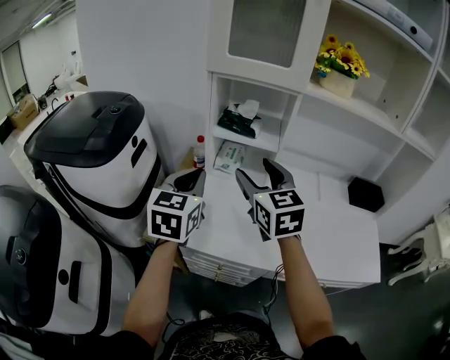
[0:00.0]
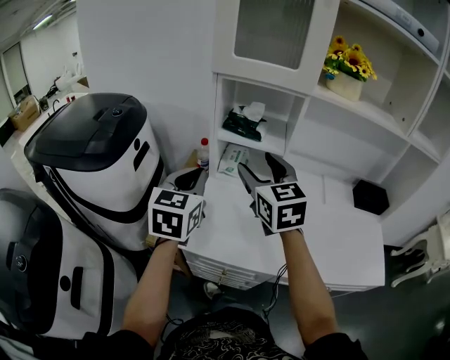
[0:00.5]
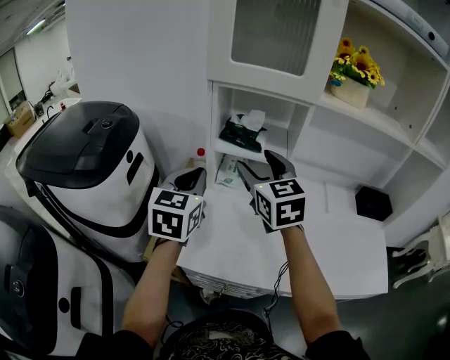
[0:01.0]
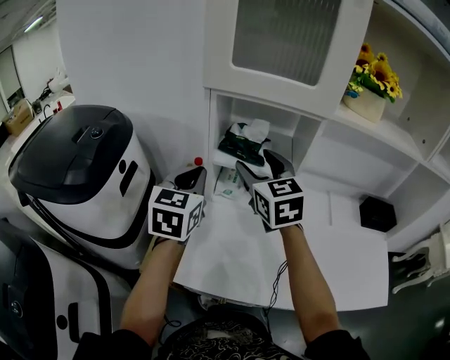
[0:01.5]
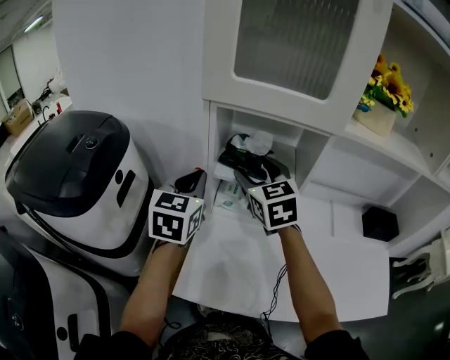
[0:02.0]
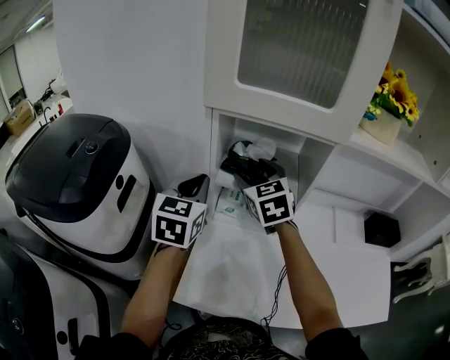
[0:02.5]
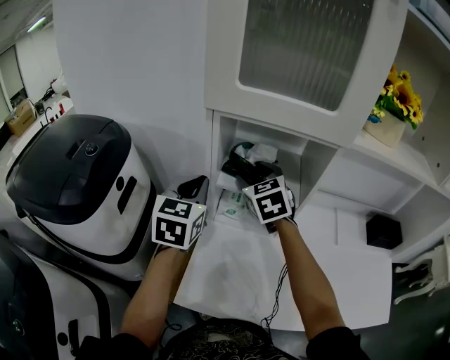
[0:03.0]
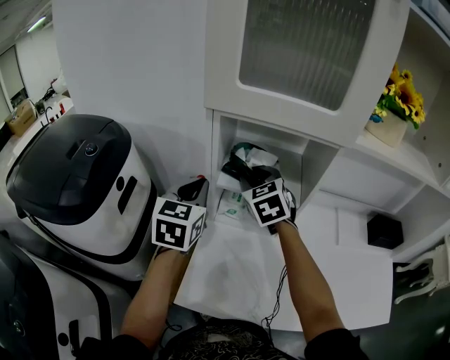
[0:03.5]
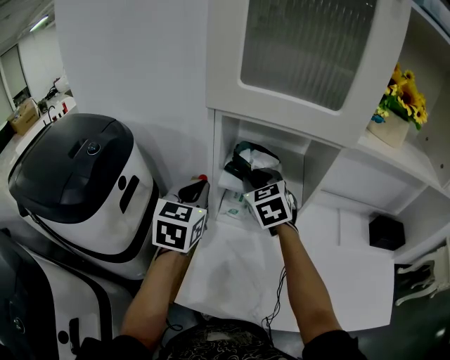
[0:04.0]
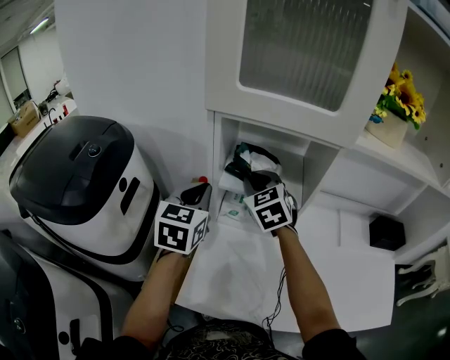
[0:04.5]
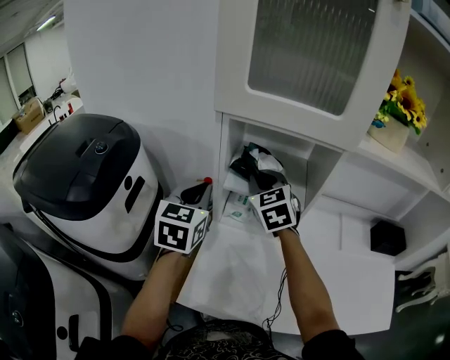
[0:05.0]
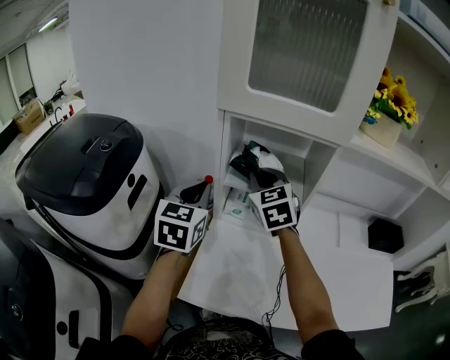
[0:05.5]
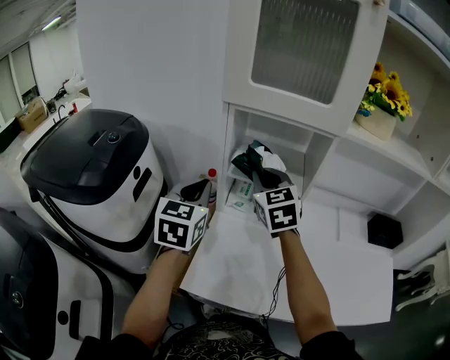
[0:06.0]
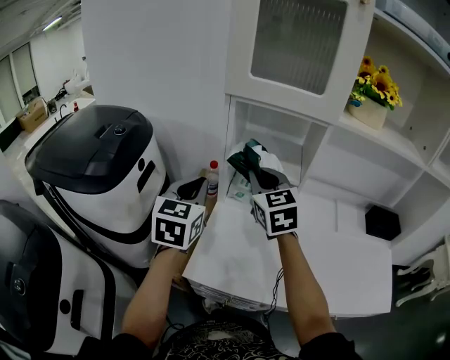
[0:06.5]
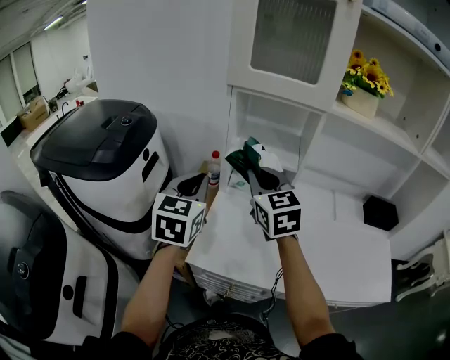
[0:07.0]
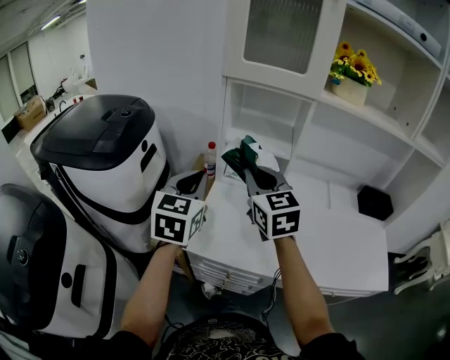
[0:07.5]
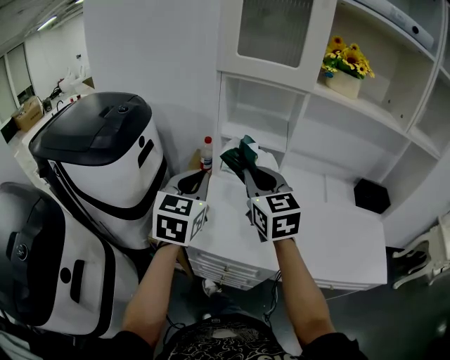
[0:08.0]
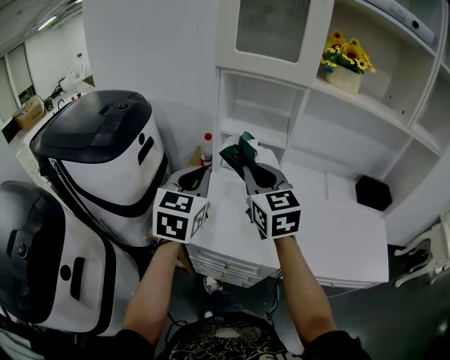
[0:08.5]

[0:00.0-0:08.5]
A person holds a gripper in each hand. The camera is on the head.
0:00.0 to 0:02.0: Both grippers move forward, about 20 cm.
0:02.0 to 0:04.0: The right gripper goes some 5 cm downward, and closes.
0:04.0 to 0:06.5: The right gripper shifts some 15 cm backward and upward, while the left gripper heads backward, covering some 10 cm.
0:06.5 to 0:08.5: Both grippers move backward, some 15 cm.

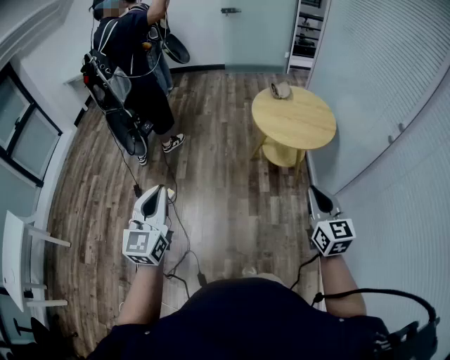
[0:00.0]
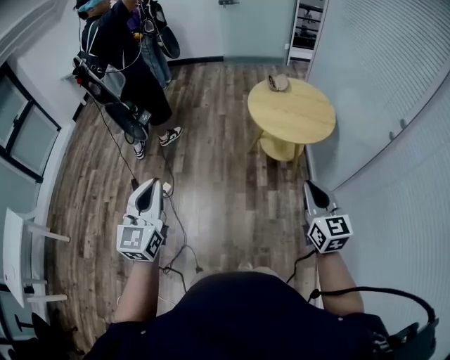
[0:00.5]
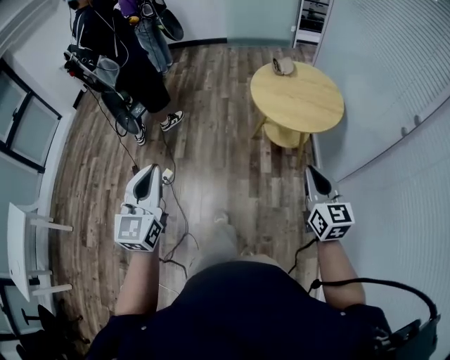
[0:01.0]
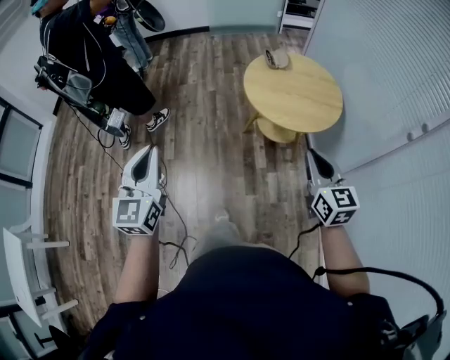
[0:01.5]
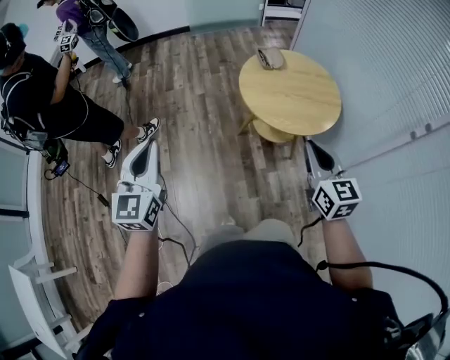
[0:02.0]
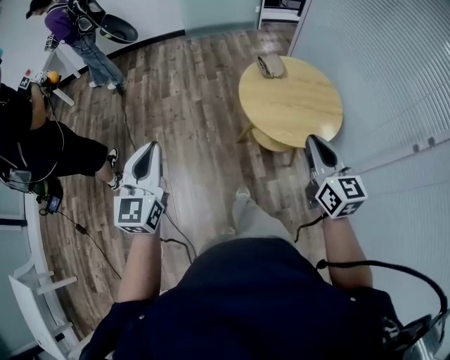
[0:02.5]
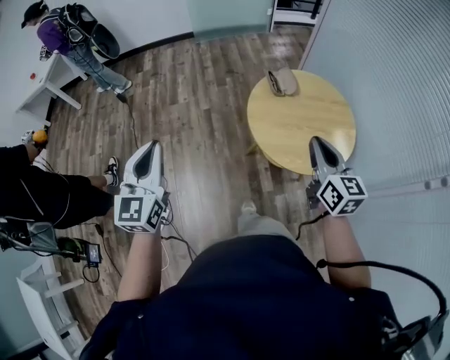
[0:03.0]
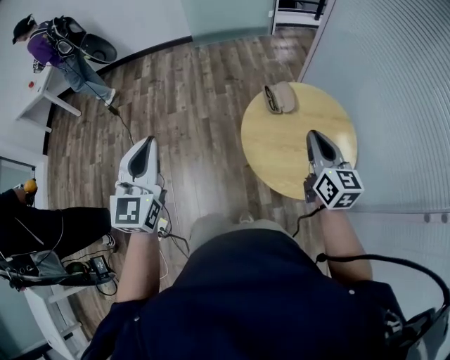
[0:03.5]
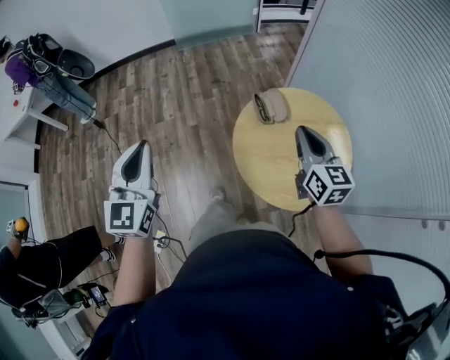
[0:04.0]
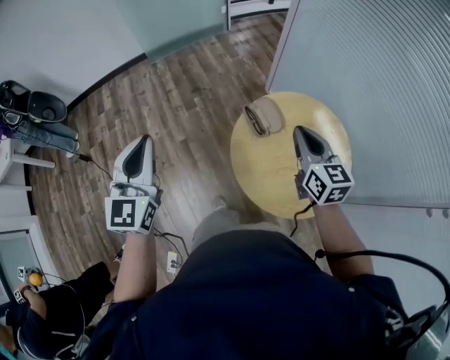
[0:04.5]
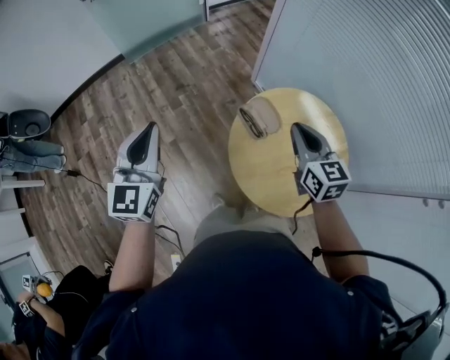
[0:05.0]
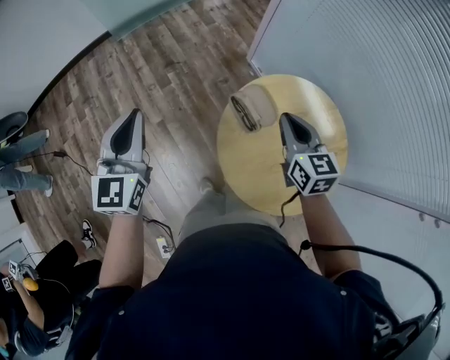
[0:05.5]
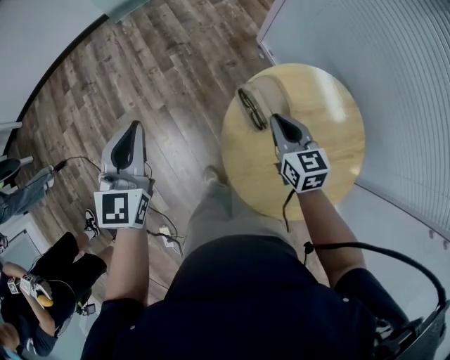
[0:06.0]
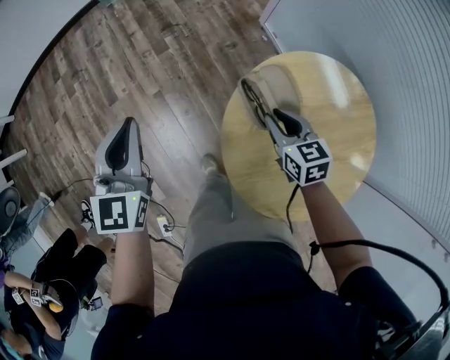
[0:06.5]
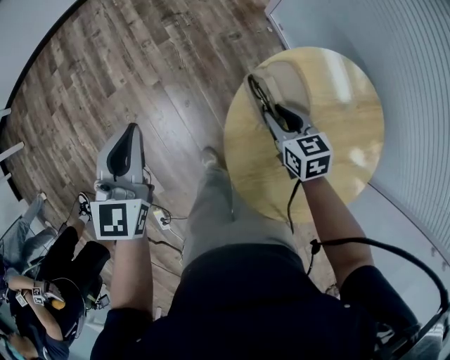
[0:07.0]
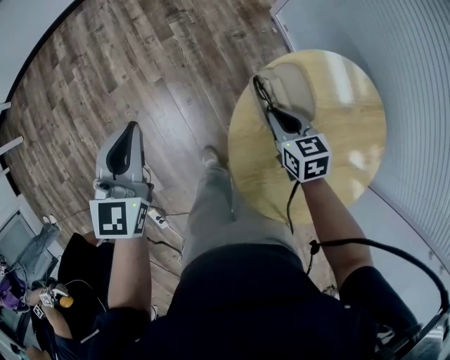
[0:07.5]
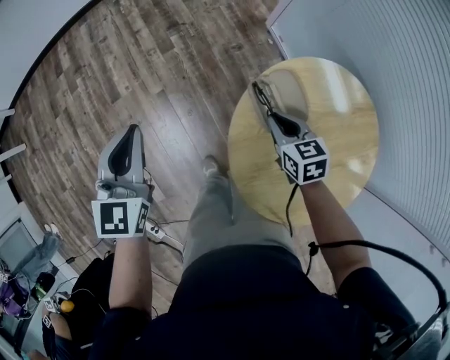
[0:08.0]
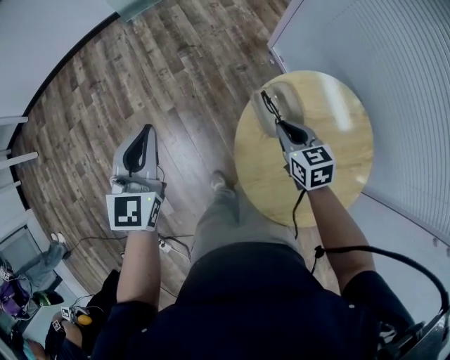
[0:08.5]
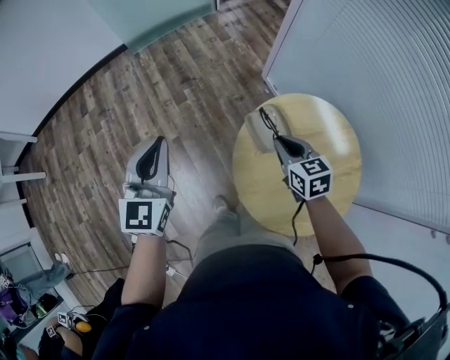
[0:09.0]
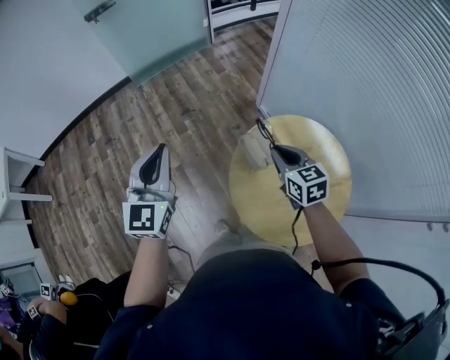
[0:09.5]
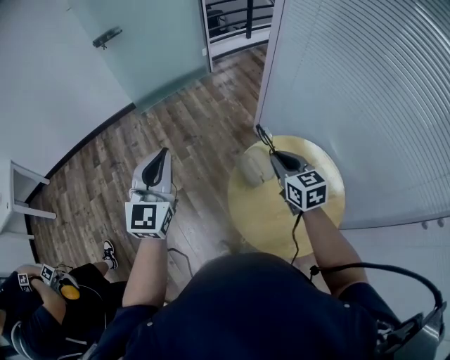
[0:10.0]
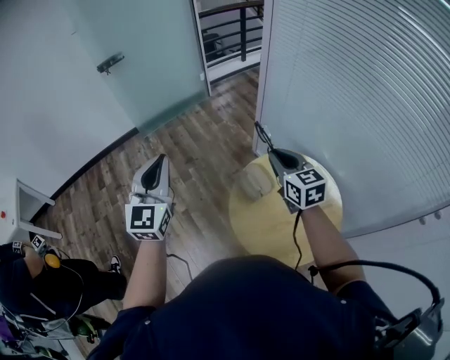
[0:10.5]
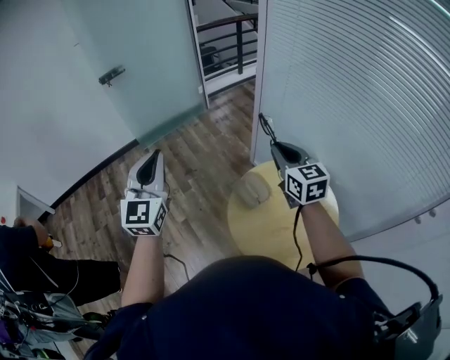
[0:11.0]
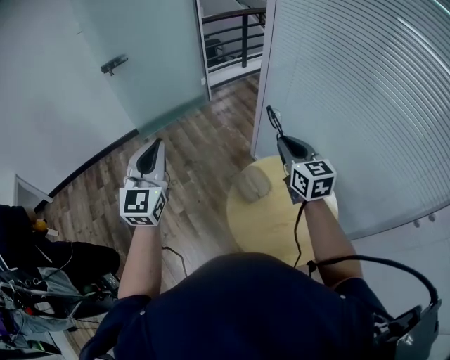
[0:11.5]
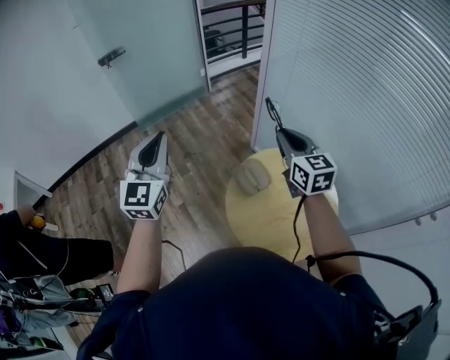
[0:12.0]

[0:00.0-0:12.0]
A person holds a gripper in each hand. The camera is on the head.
0:00.0 to 0:02.0: Both grippers travel together forward, some 35 cm.
0:02.0 to 0:04.0: The two grippers travel together, forward, about 40 cm.
0:04.0 to 0:06.0: Both grippers move forward and downward, about 35 cm. The right gripper turns by approximately 20 degrees. The left gripper rotates roughly 20 degrees.
0:06.0 to 0:08.0: The left gripper heads downward, covering some 5 cm. The right gripper moves downward, roughly 10 cm, and opens and closes again.
0:08.0 to 0:10.0: Both grippers move upward, about 25 cm. The left gripper rotates approximately 20 degrees. The right gripper turns by roughly 20 degrees.
0:10.0 to 0:12.0: The left gripper is displaced upward by some 10 cm. The right gripper travels upward by approximately 15 cm.

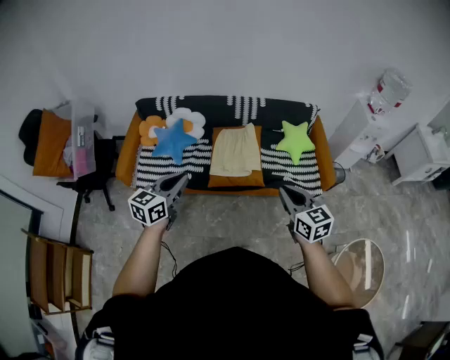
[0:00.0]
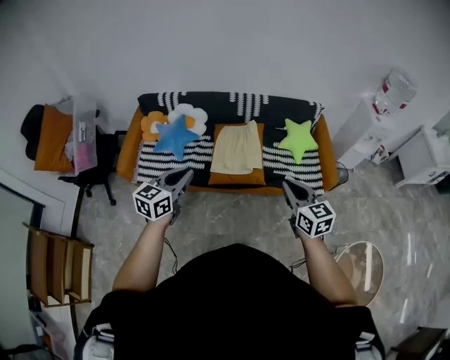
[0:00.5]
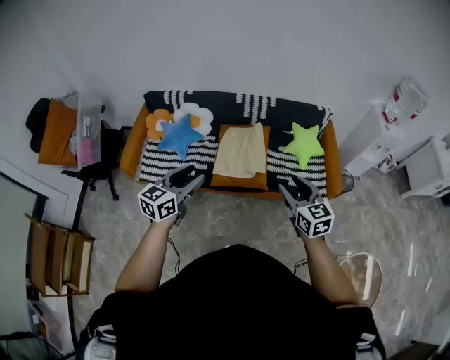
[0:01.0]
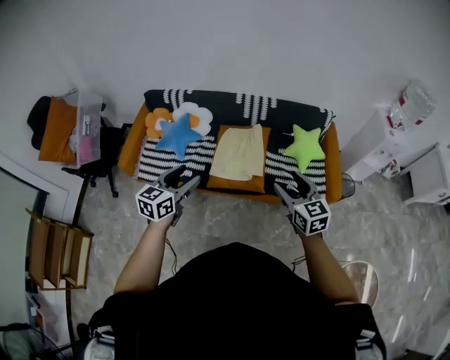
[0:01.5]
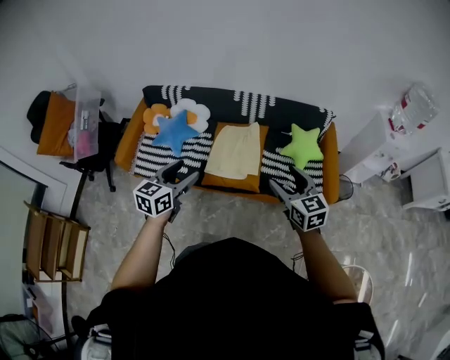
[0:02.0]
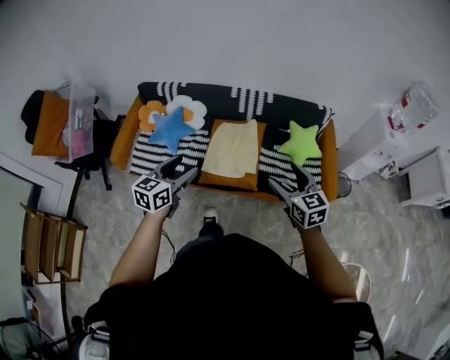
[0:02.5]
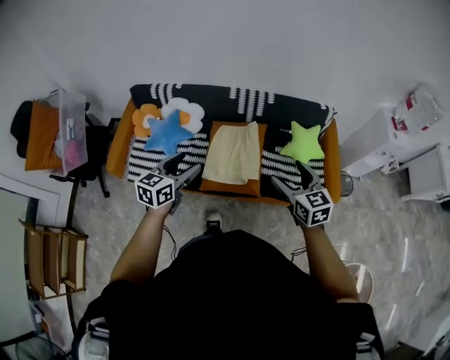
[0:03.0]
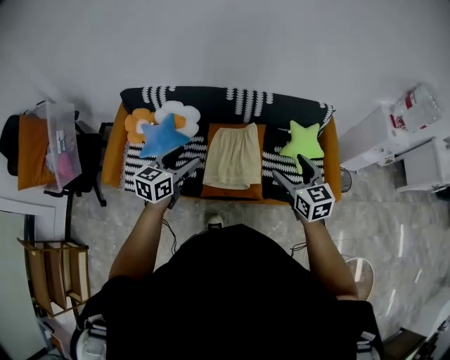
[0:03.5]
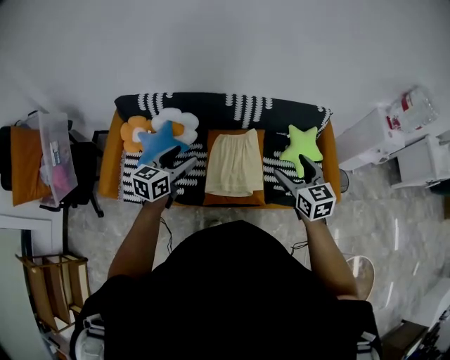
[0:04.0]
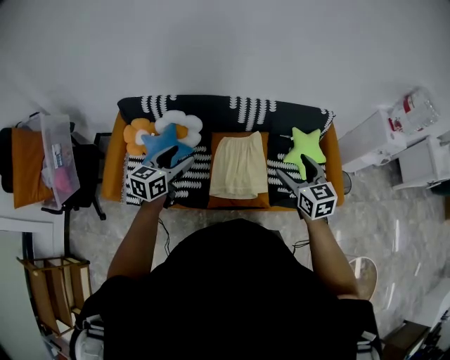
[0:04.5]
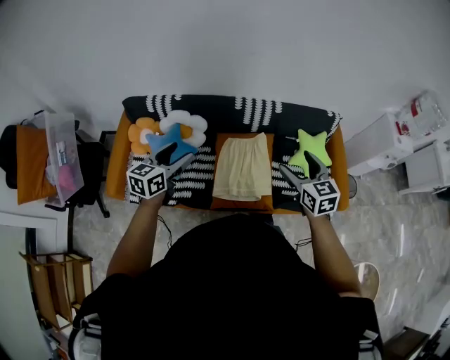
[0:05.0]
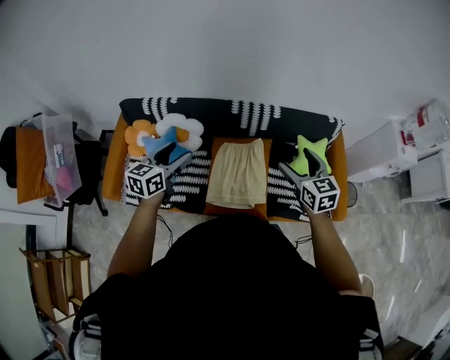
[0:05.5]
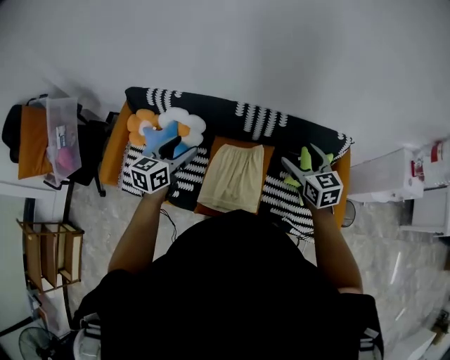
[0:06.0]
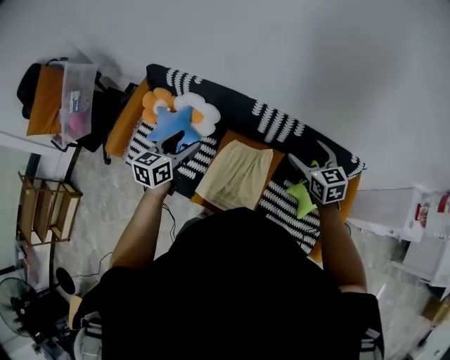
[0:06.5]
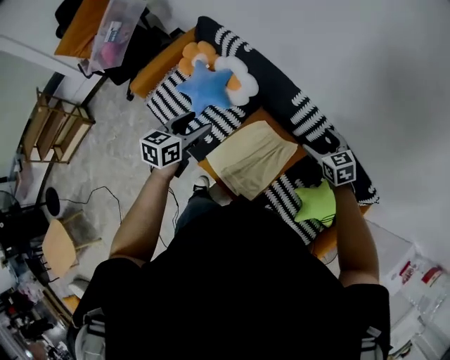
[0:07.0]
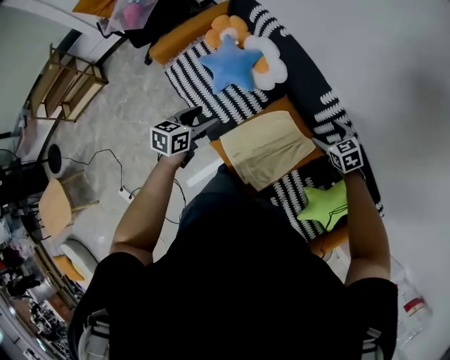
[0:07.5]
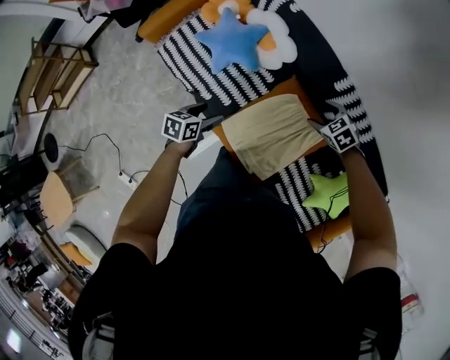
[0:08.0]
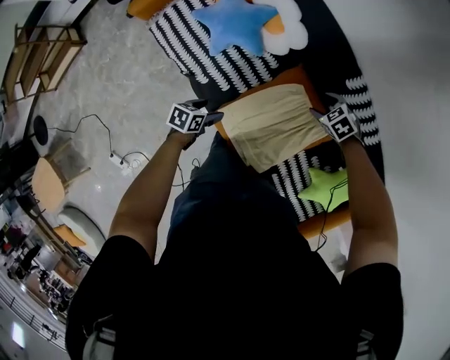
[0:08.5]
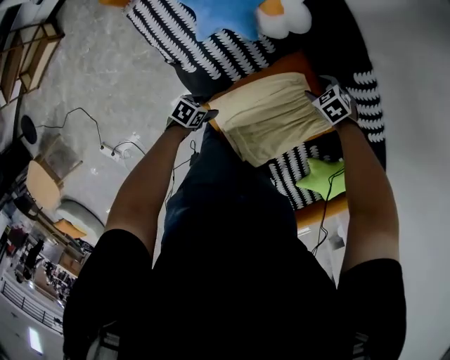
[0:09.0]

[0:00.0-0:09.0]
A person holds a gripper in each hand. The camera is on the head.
0:00.0 to 0:02.0: The right gripper is displaced forward and to the right by approximately 20 cm, and opens up. The left gripper moves to the right and forward, approximately 15 cm, and opens up.
0:02.0 to 0:04.5: Both grippers travel together forward and to the left, some 30 cm.
0:04.5 to 0:07.0: The left gripper ends up about 15 cm from where it was, and swivels about 40 degrees. Meanwhile the right gripper changes place by approximately 40 cm, and rotates approximately 50 degrees.
0:07.0 to 0:09.0: The grippers both shift downward by about 40 cm. The left gripper turns by approximately 50 degrees. The right gripper angles its fingers downward, by approximately 30 degrees.
